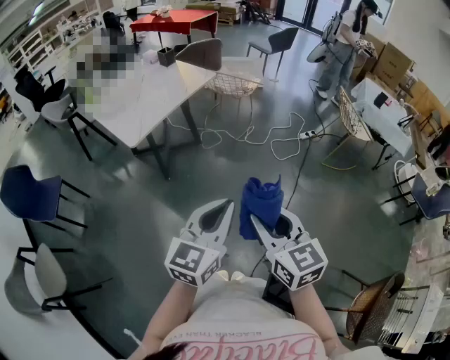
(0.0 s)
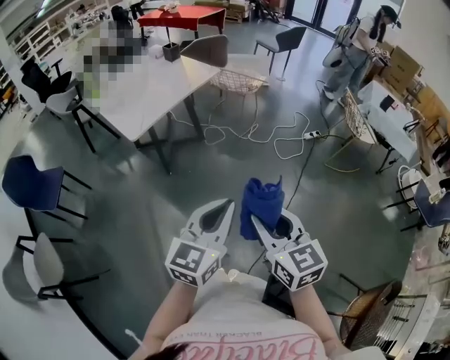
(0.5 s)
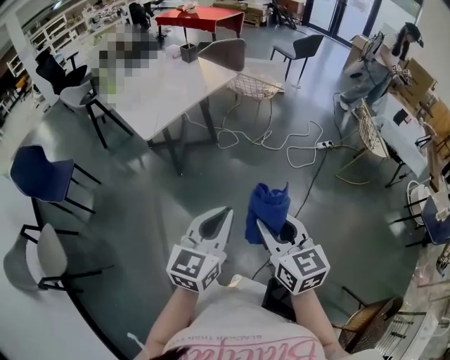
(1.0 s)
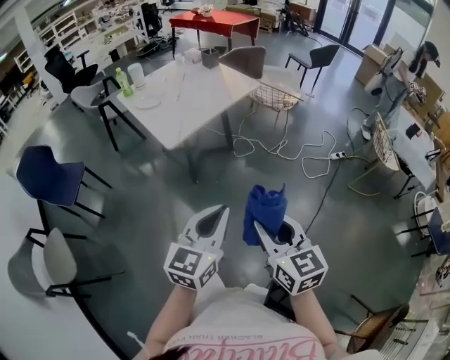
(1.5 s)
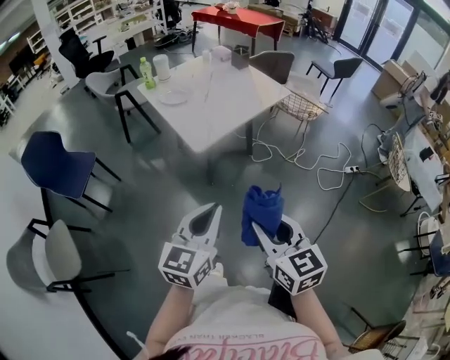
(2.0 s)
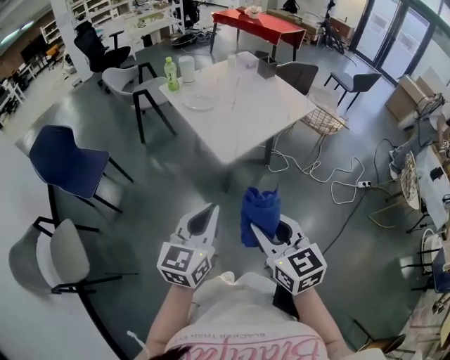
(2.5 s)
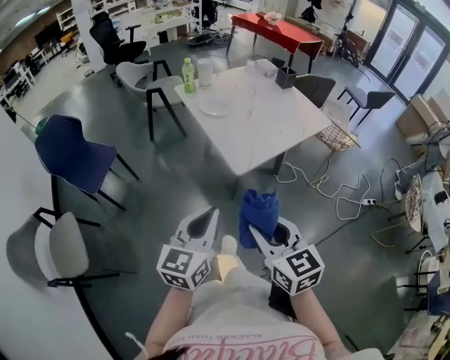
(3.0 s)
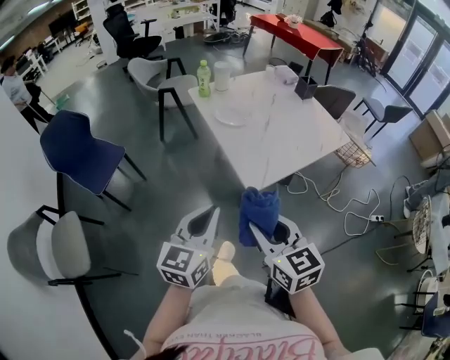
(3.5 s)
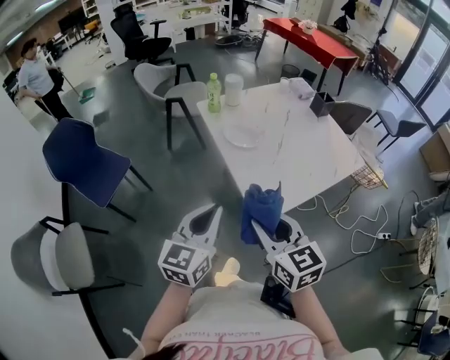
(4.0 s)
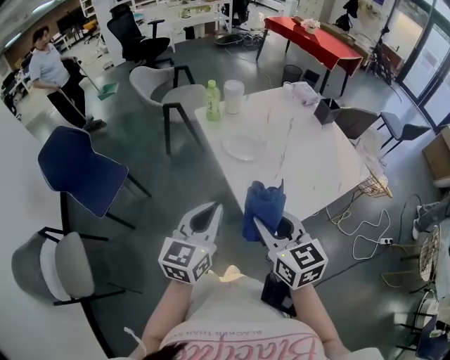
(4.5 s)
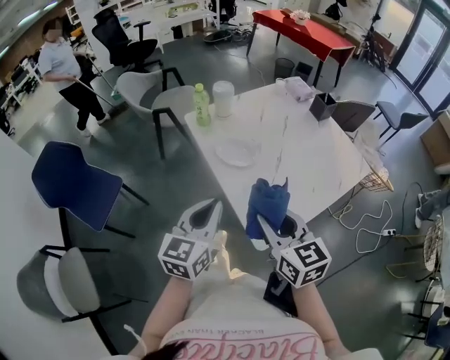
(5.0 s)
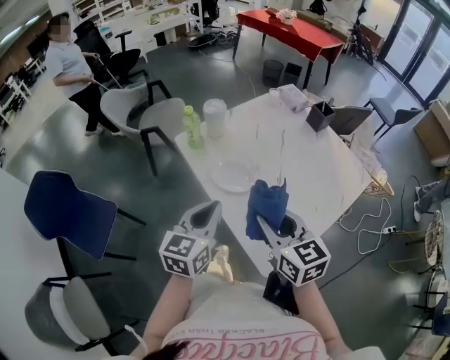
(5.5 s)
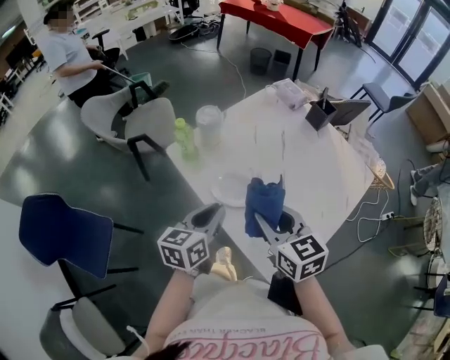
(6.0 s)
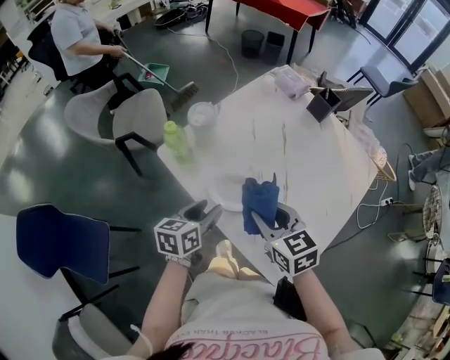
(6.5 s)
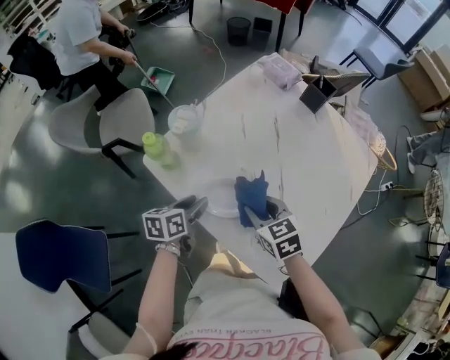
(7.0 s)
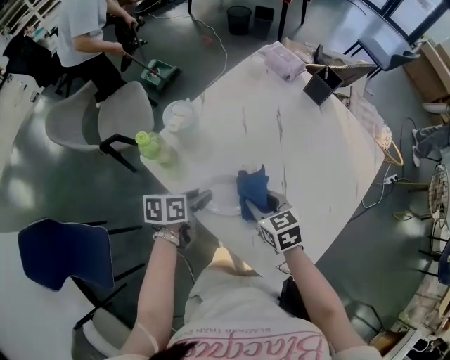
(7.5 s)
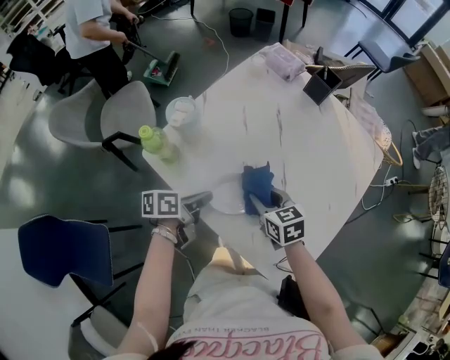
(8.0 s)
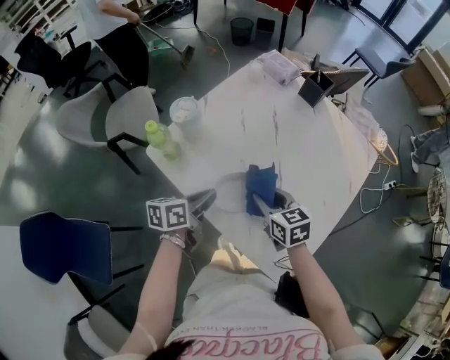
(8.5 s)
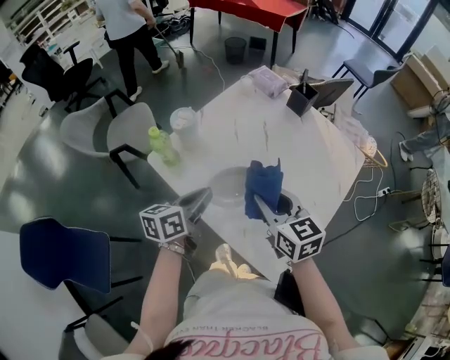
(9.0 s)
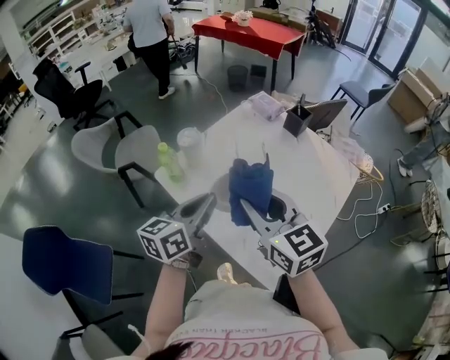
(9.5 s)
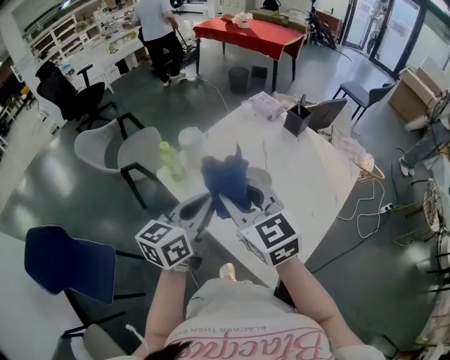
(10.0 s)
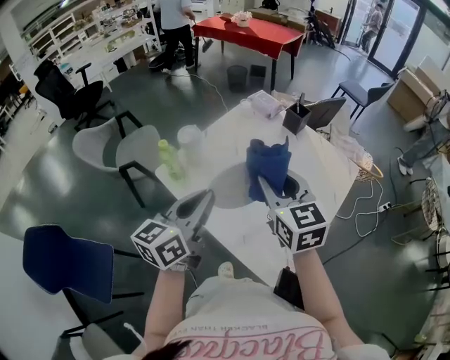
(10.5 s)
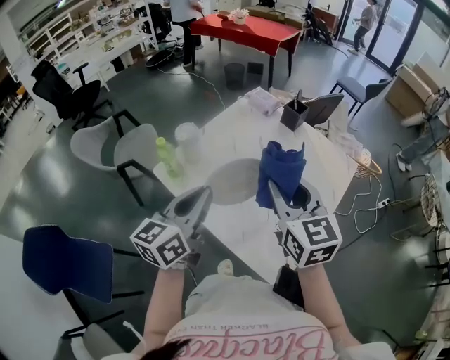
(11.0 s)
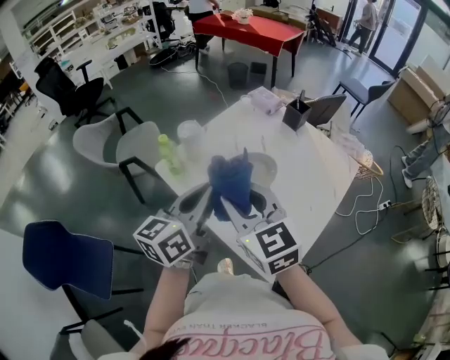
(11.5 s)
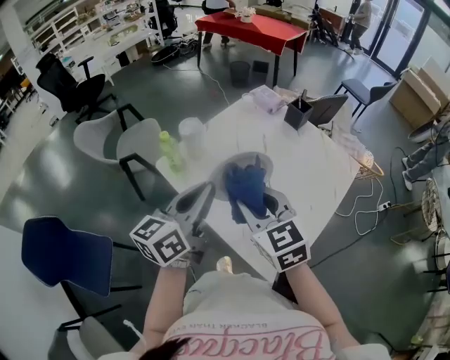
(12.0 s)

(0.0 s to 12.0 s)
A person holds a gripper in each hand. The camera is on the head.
0.0 s - 2.0 s: The right gripper is displaced to the left and forward by some 25 cm. The left gripper travels to the left by roughly 30 cm.
2.0 s - 4.0 s: Both grippers travel together forward and to the left, approximately 40 cm.
4.0 s - 6.0 s: Both grippers travel together forward, some 35 cm. The left gripper changes its angle by about 30 degrees.
6.0 s - 8.0 s: The grippers both shift downward and forward by approximately 20 cm. The left gripper swivels roughly 40 degrees, and opens and closes again.
8.0 s - 10.0 s: The two grippers go roughly 30 cm upward. The left gripper turns by roughly 50 degrees, while the right gripper swivels approximately 30 degrees.

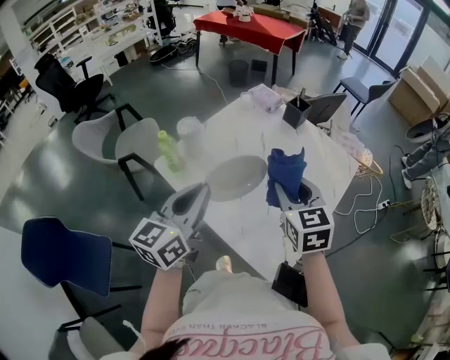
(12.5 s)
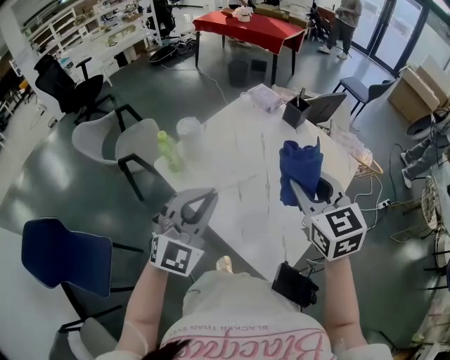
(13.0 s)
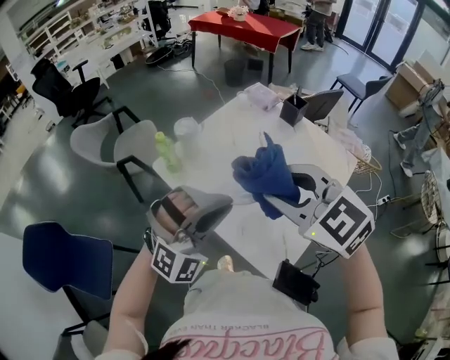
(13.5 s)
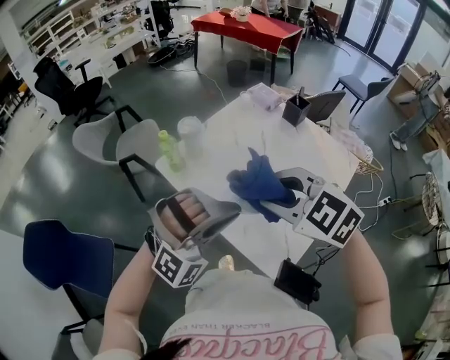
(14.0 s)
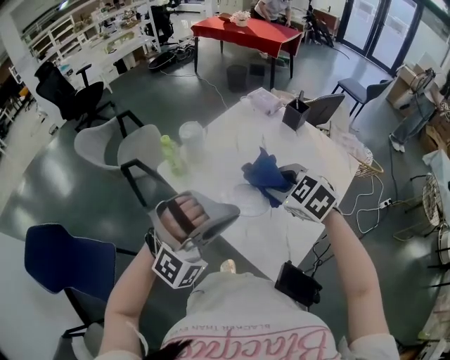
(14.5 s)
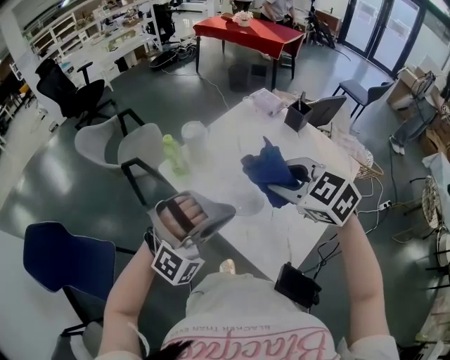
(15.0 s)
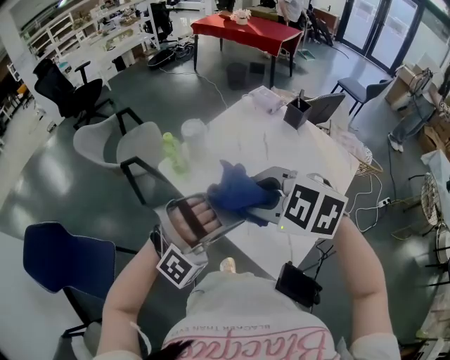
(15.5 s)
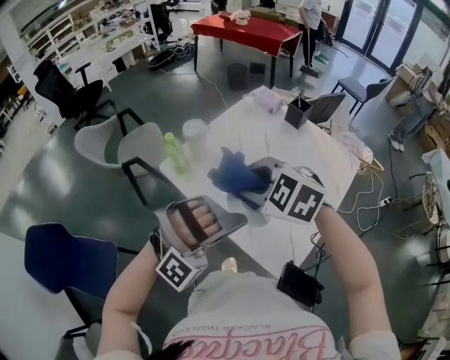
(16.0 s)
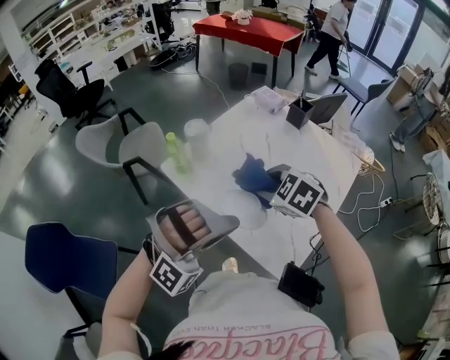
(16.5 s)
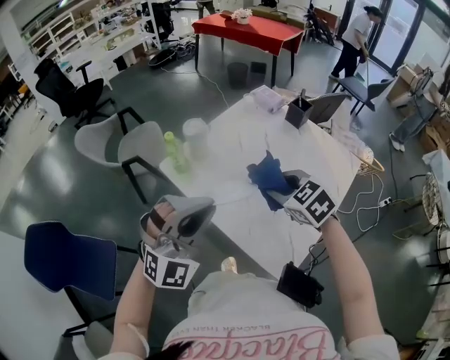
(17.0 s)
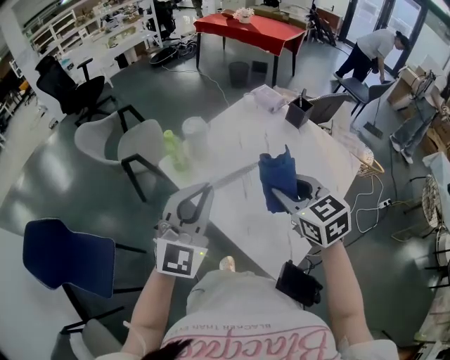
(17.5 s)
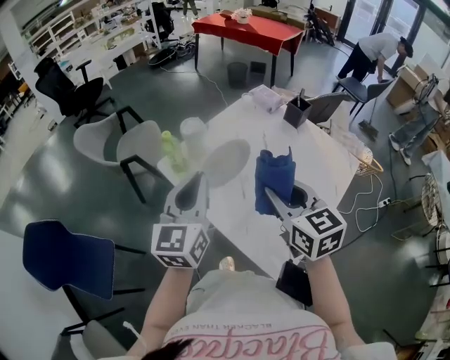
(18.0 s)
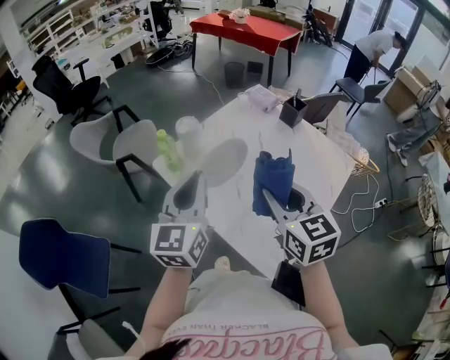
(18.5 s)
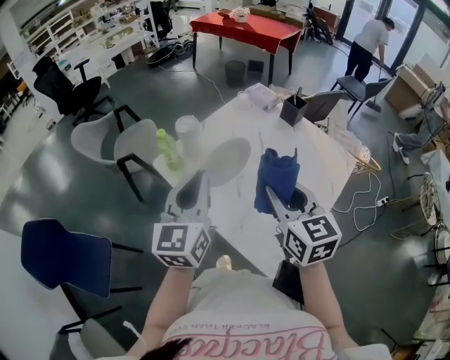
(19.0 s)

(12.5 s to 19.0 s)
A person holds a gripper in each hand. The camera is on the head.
12.5 s - 14.5 s: The left gripper goes about 10 cm backward and to the right, and rolls clockwise, seen from behind, by roughly 100 degrees, while the right gripper travels upward and back again, some 10 cm each way, and swivels some 40 degrees.
14.5 s - 17.0 s: The left gripper goes approximately 5 cm to the left, and turns by some 30 degrees. Meanwhile the right gripper moves roughly 10 cm upward and comes back.
17.0 s - 19.0 s: The left gripper travels forward by about 5 cm, and twists some 60 degrees counterclockwise, seen from behind. Meanwhile the right gripper heads upward, covering roughly 10 cm, and changes its angle by about 40 degrees.

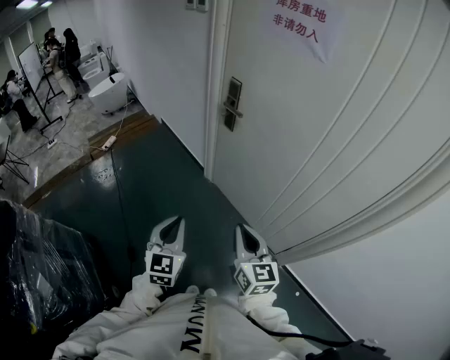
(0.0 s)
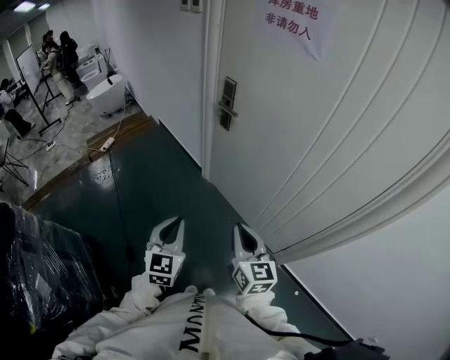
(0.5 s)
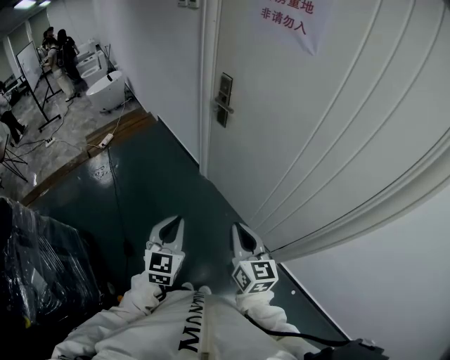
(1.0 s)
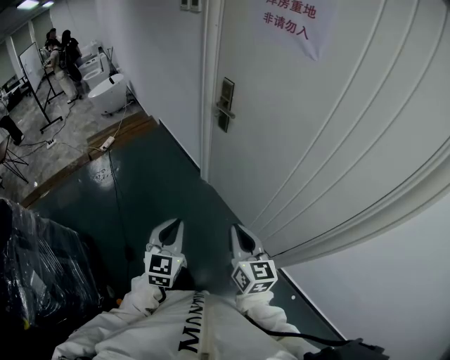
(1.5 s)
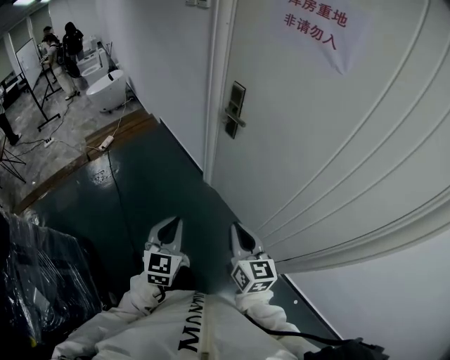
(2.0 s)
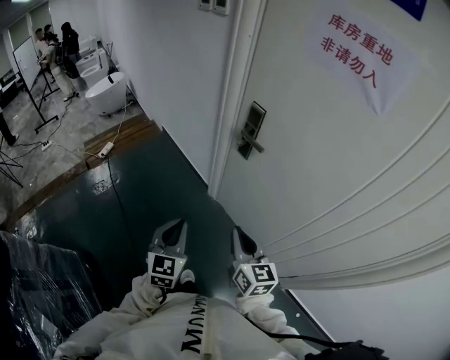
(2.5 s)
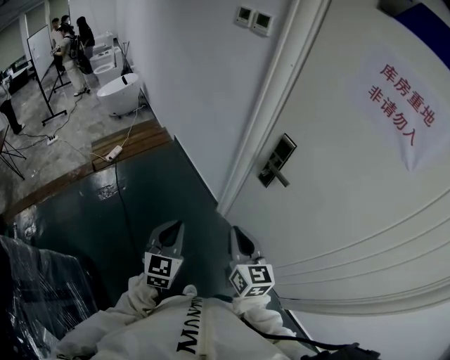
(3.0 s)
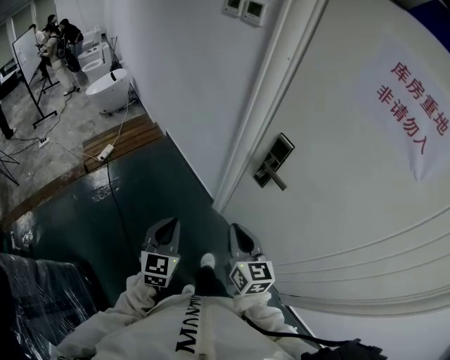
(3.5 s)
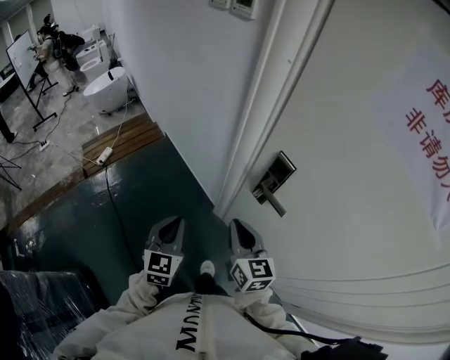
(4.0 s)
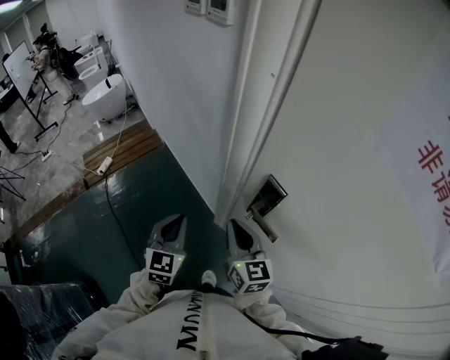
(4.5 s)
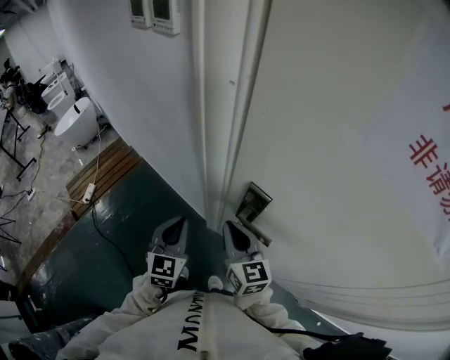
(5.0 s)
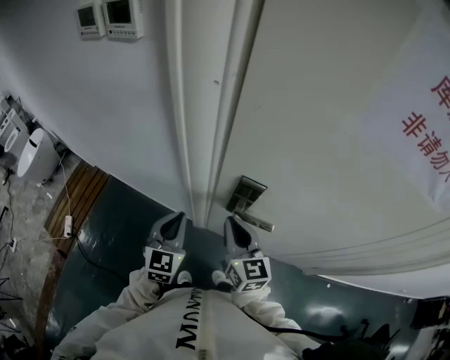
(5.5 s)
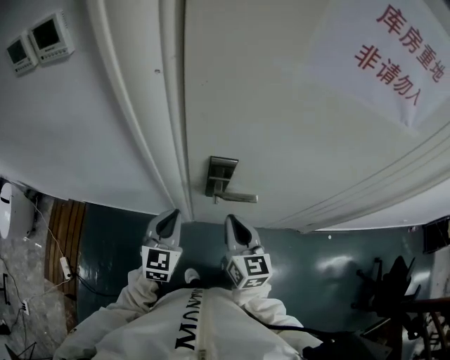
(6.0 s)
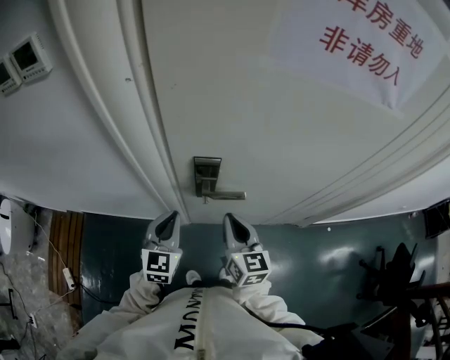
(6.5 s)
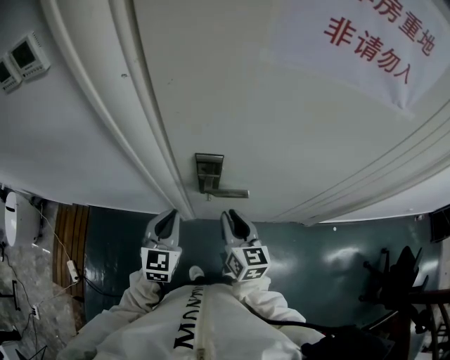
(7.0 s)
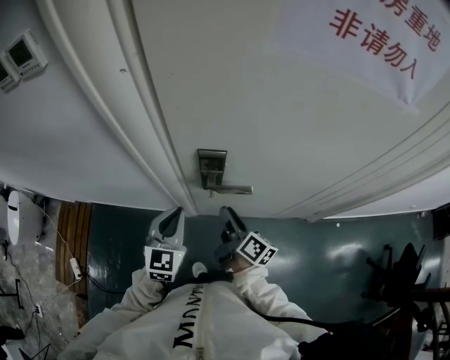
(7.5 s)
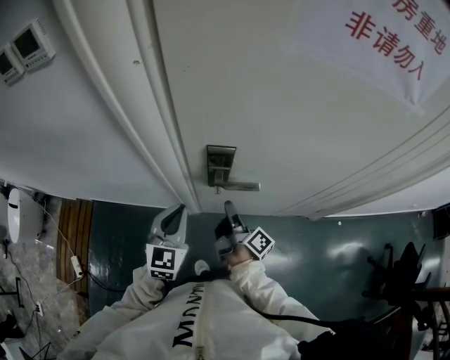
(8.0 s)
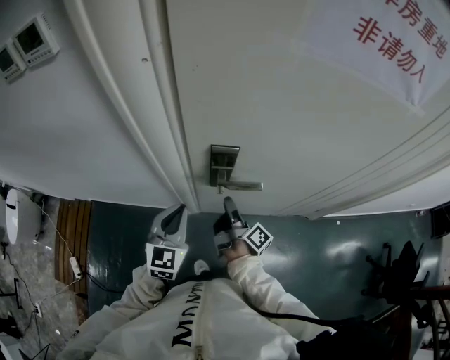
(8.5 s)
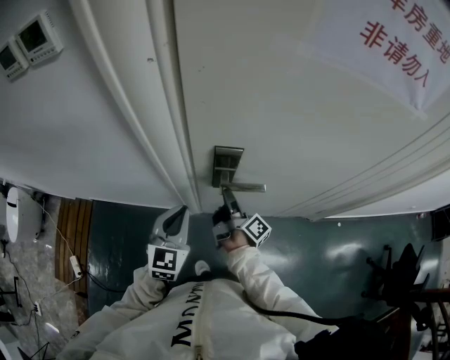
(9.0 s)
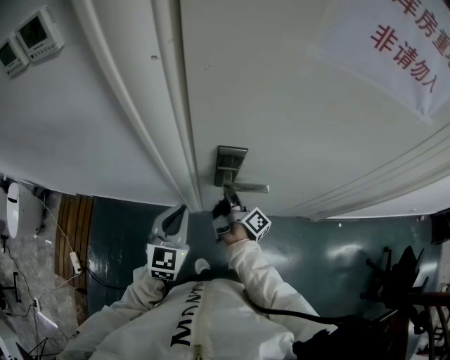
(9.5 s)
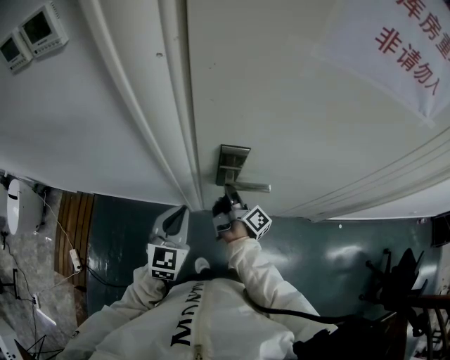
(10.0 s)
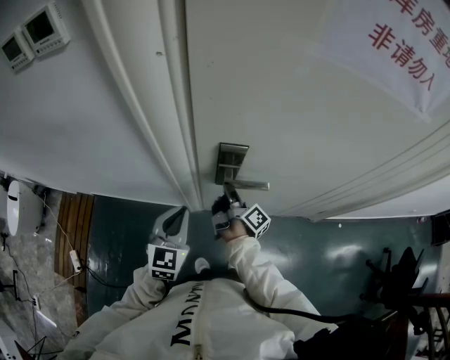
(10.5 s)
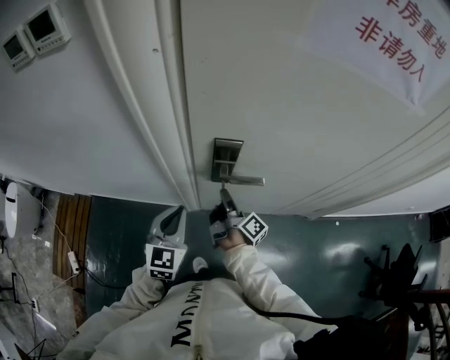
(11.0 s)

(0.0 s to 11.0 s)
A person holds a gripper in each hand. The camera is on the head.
0.0 s - 2.0 s: The two grippers go roughly 10 cm forward.
2.0 s - 3.5 s: The grippers both shift forward and to the left by some 25 cm.
3.5 s - 5.5 s: The left gripper shifts by about 30 cm, and turns by some 30 degrees; the right gripper ends up some 25 cm from where it was, and swivels some 30 degrees.
5.5 s - 7.5 s: The left gripper heads to the right, covering approximately 5 cm. The right gripper is displaced downward and to the right by roughly 10 cm, twists about 60 degrees clockwise, seen from behind, and opens up.
7.5 s - 9.0 s: The right gripper heads forward, covering approximately 5 cm, and swivels approximately 30 degrees.
9.0 s - 11.0 s: The right gripper closes its fingers.
